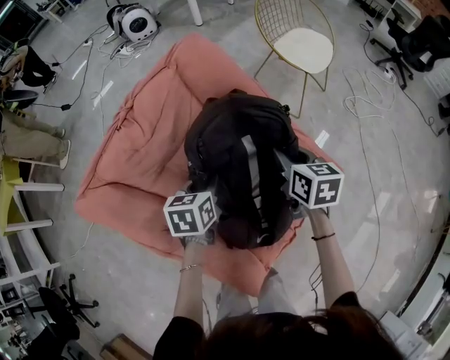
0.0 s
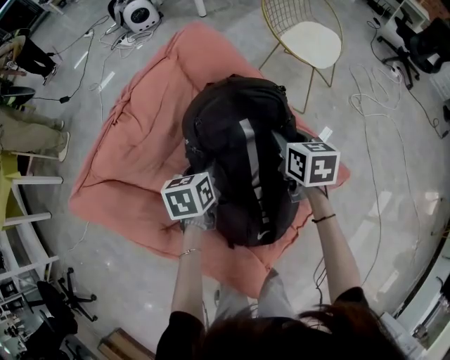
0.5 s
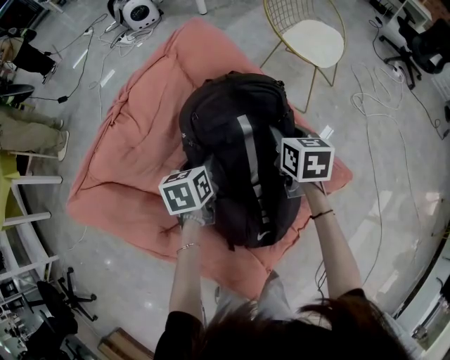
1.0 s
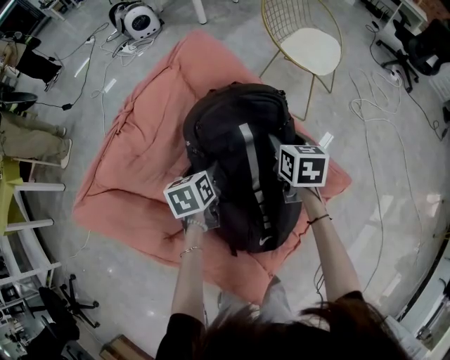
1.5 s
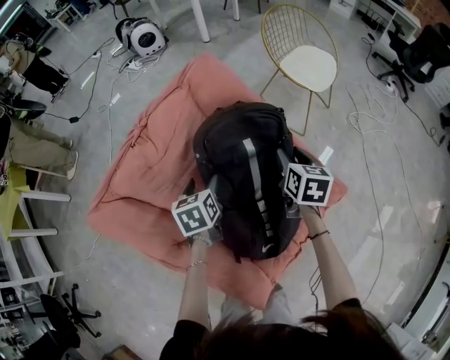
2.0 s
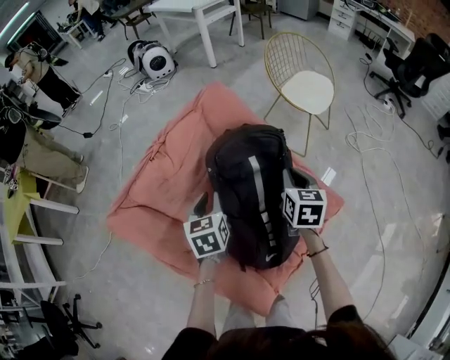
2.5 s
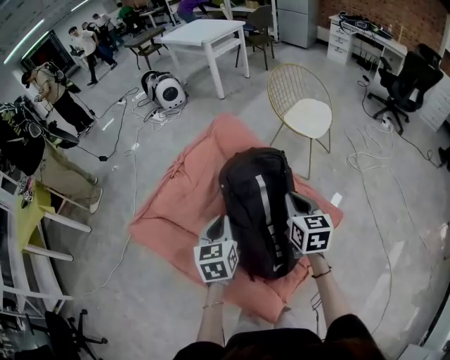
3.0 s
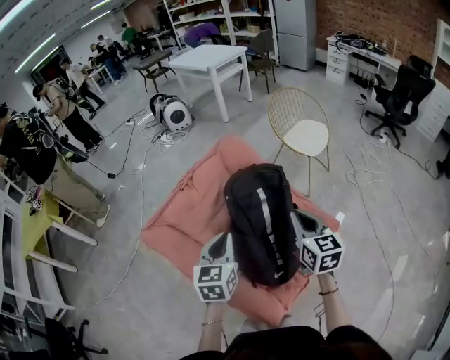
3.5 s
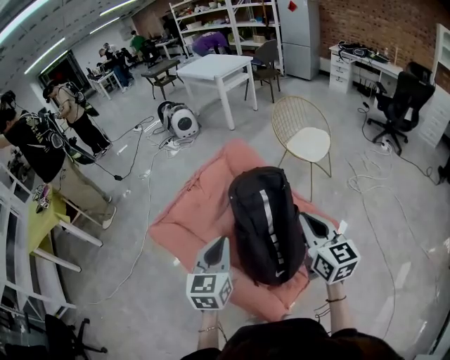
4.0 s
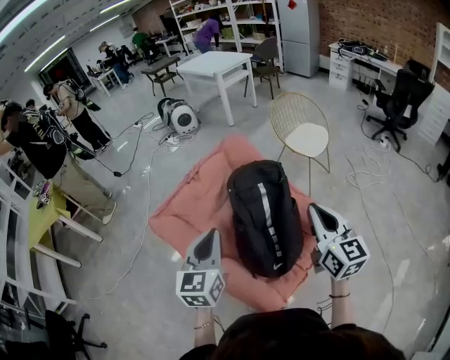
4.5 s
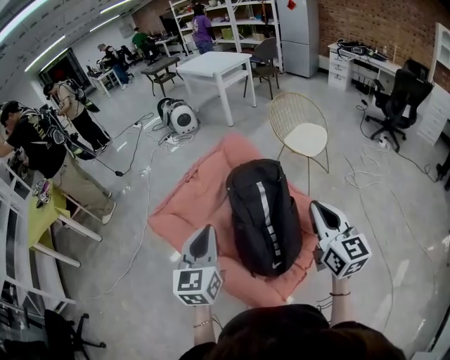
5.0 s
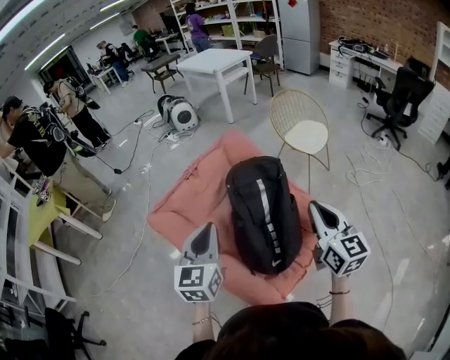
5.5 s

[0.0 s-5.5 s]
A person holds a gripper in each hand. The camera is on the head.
0.0 to 2.0 s: The right gripper travels forward by roughly 5 cm, and opens. Meanwhile the left gripper moves forward and to the left, about 5 cm, and opens its fingers.
2.0 to 3.5 s: The two grippers go about 30 cm upward and backward. The right gripper turns by about 20 degrees, and closes up, while the left gripper swivels roughly 30 degrees, and closes its fingers.
3.5 to 5.5 s: The right gripper is displaced backward and upward by about 15 cm. Meanwhile the left gripper is displaced upward and backward by some 10 cm.

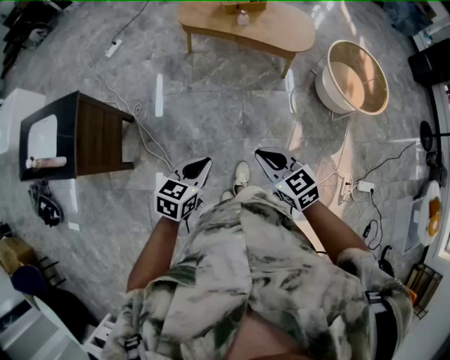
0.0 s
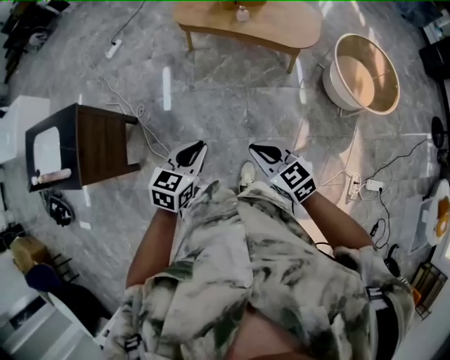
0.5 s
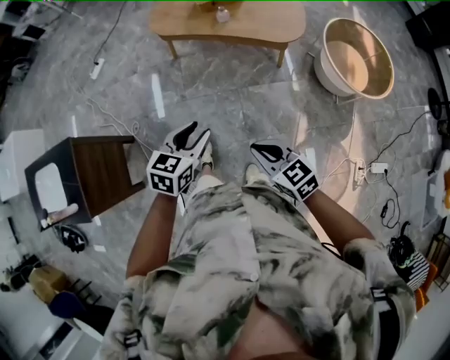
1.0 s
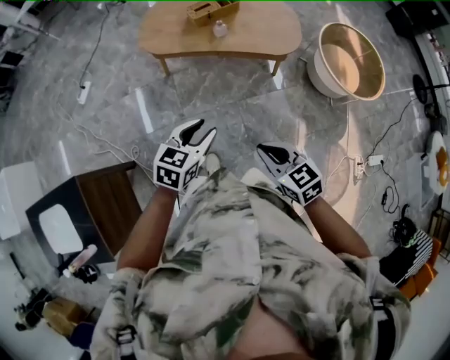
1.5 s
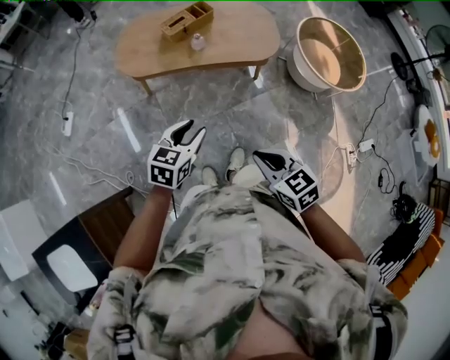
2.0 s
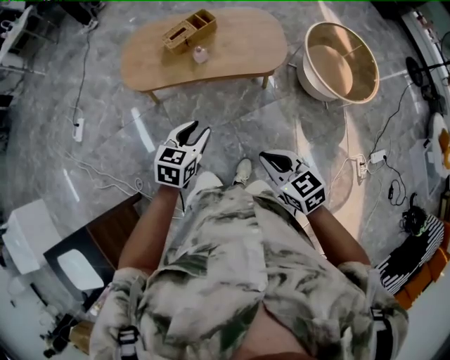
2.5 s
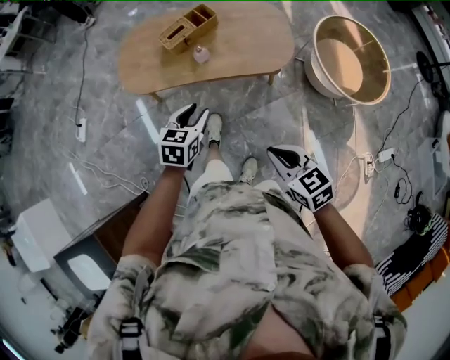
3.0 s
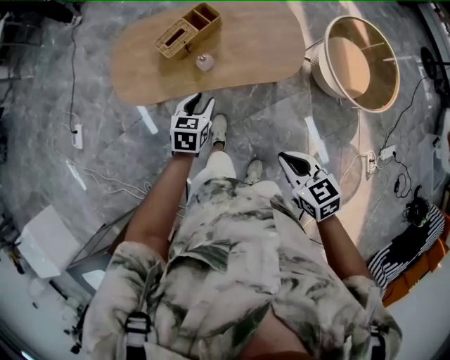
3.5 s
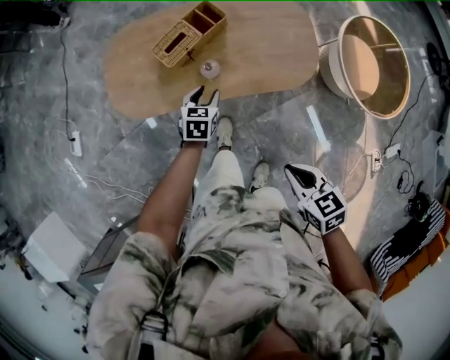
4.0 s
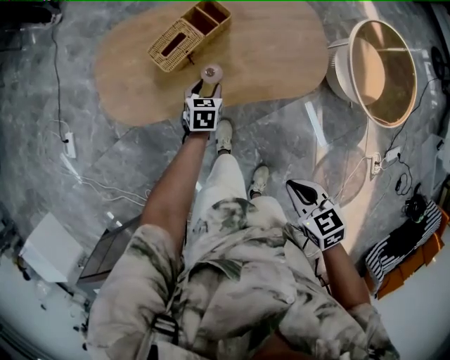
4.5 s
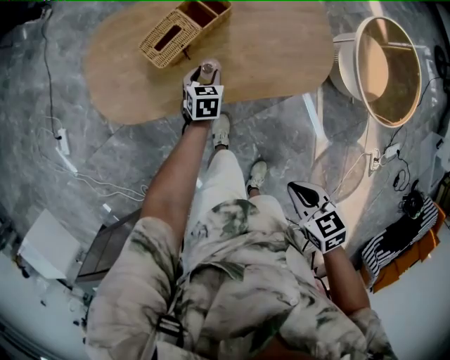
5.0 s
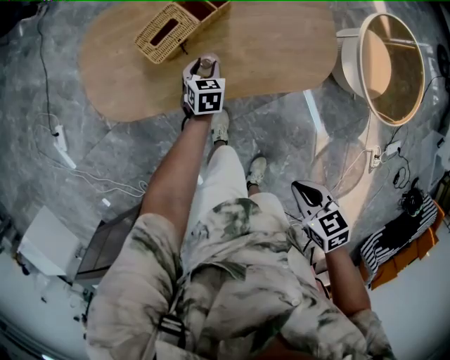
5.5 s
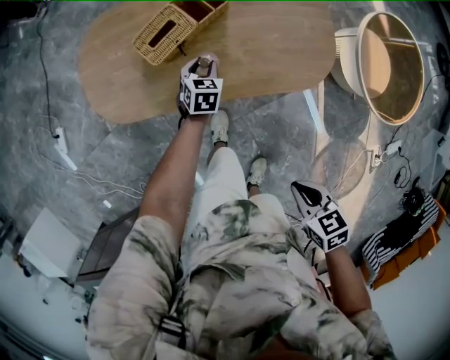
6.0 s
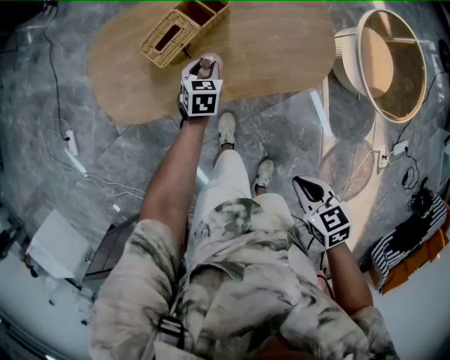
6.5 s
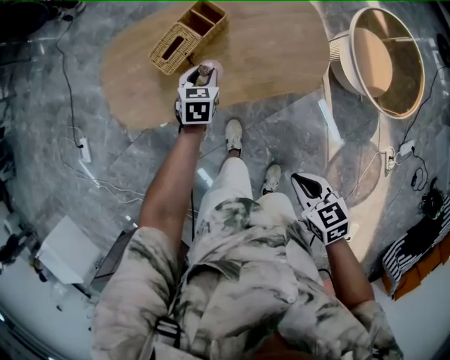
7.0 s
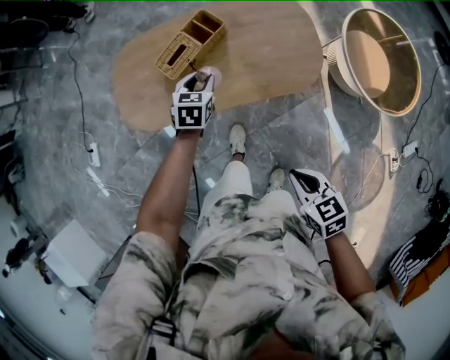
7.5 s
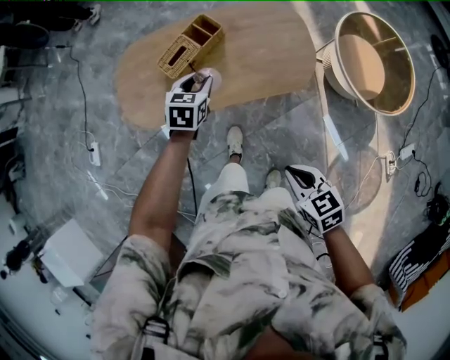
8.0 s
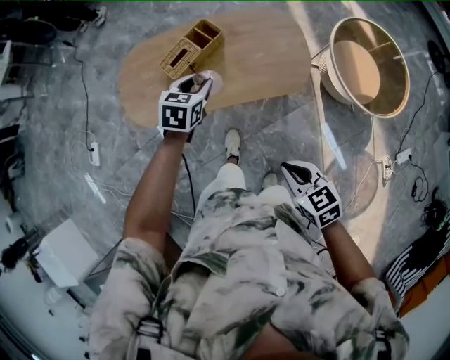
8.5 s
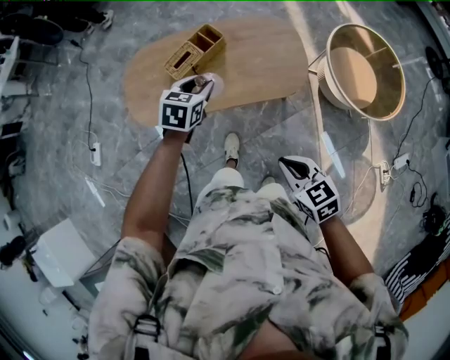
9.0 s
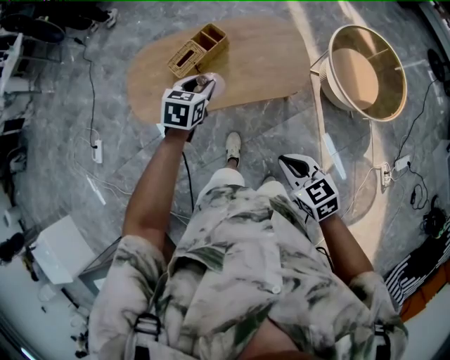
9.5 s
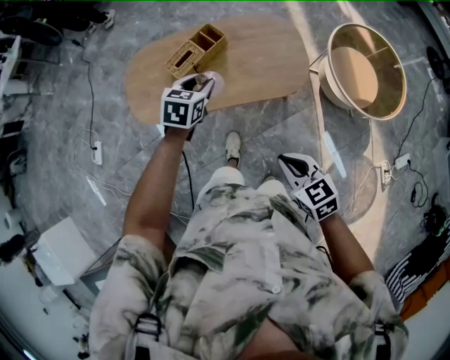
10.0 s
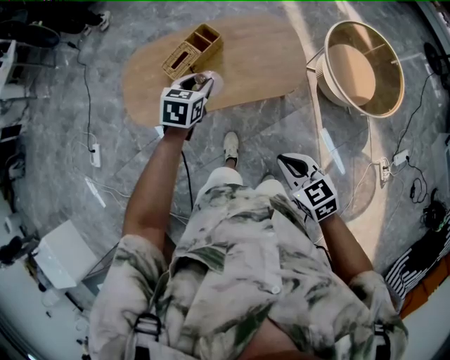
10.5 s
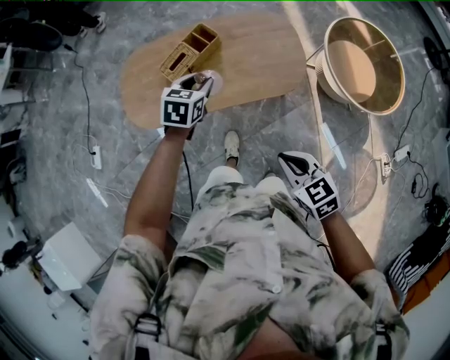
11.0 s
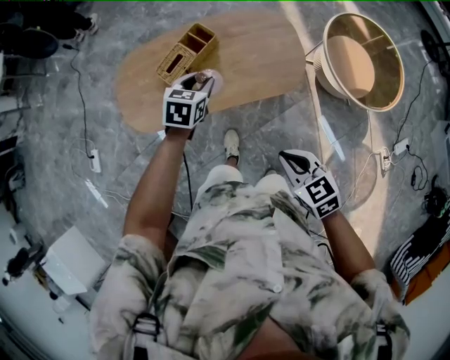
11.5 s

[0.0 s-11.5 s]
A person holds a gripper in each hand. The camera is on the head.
0.0 to 2.0 s: The right gripper shifts by approximately 35 cm, and rotates some 30 degrees; the left gripper moves approximately 50 cm, swivels approximately 20 degrees, and opens up.
2.0 to 4.0 s: The left gripper moves forward and downward, about 60 cm. The right gripper shifts about 35 cm forward.
4.0 to 6.0 s: The right gripper shifts approximately 10 cm downward. The left gripper travels downward and forward by roughly 20 cm.
6.0 to 7.5 s: The right gripper moves upward, about 10 cm. Meanwhile the left gripper goes about 20 cm upward.
7.5 to 9.5 s: The right gripper goes some 10 cm upward. Meanwhile the left gripper moves upward and backward, some 20 cm.
9.5 to 11.5 s: The grippers both shift forward by approximately 5 cm.

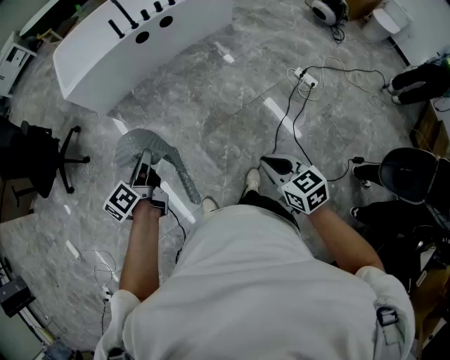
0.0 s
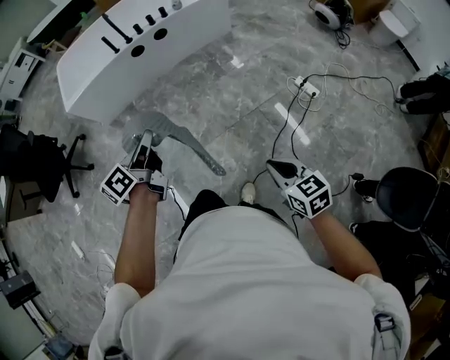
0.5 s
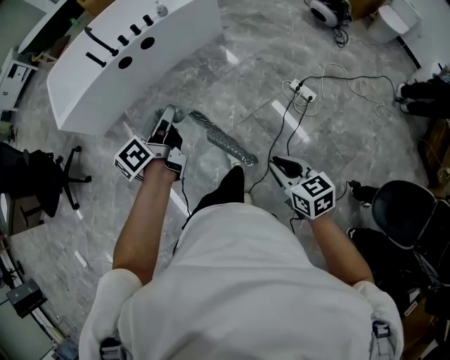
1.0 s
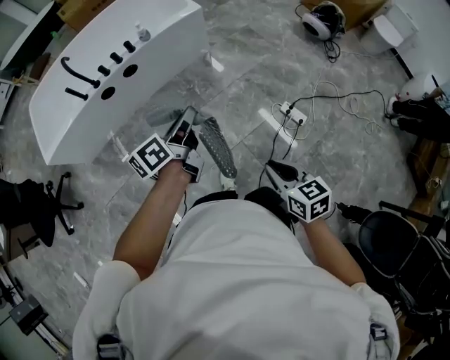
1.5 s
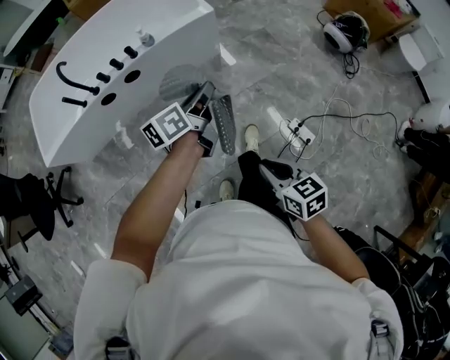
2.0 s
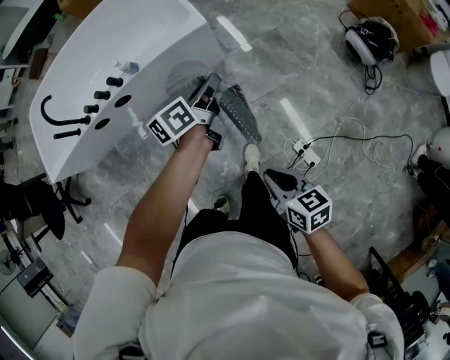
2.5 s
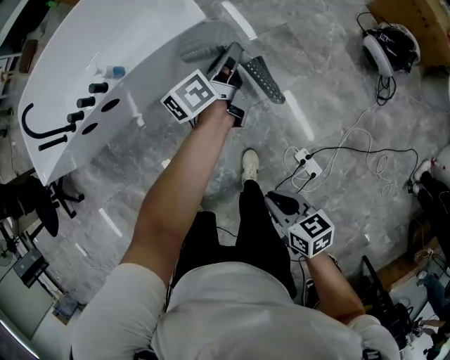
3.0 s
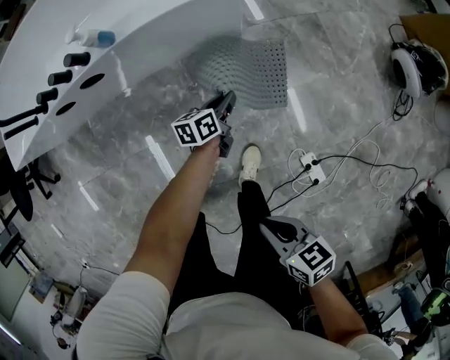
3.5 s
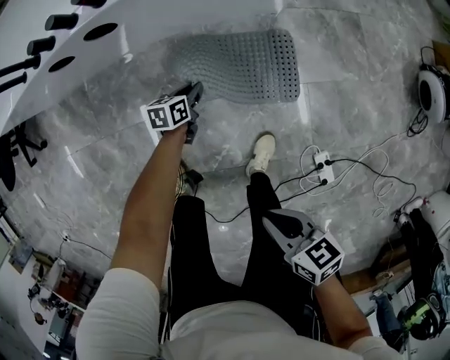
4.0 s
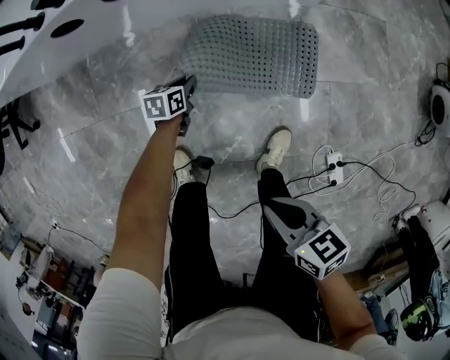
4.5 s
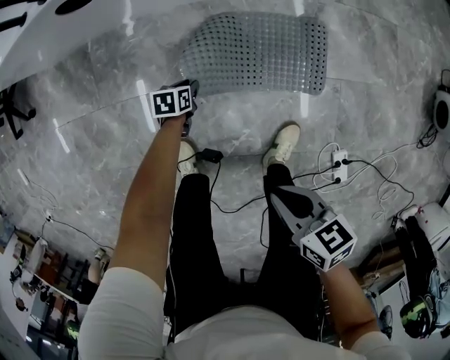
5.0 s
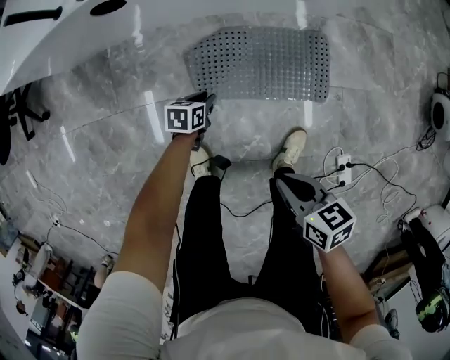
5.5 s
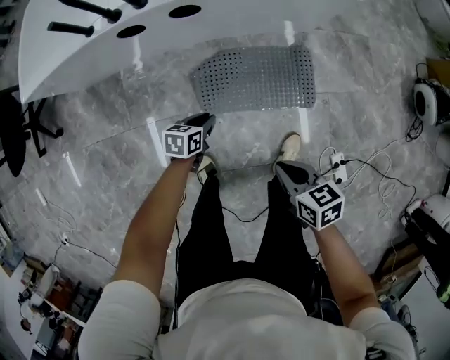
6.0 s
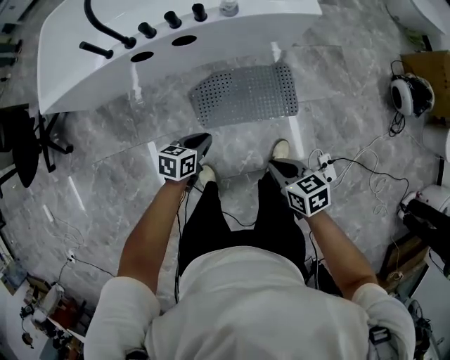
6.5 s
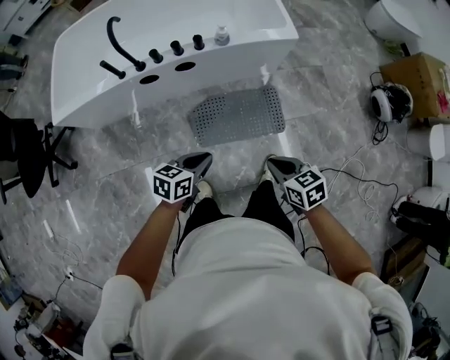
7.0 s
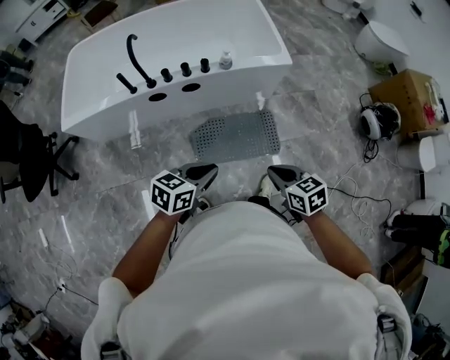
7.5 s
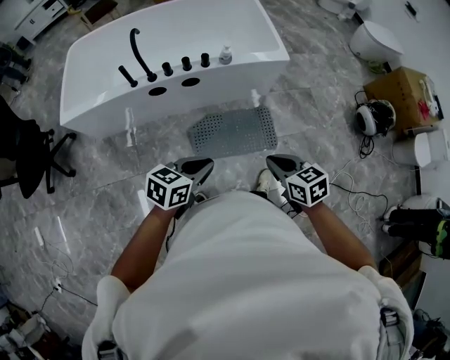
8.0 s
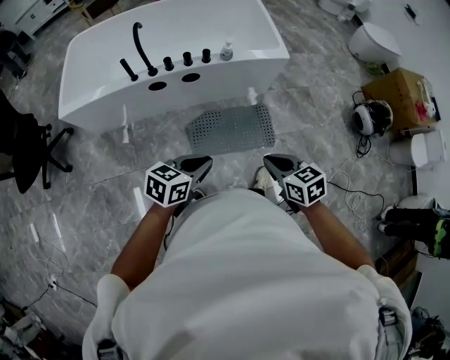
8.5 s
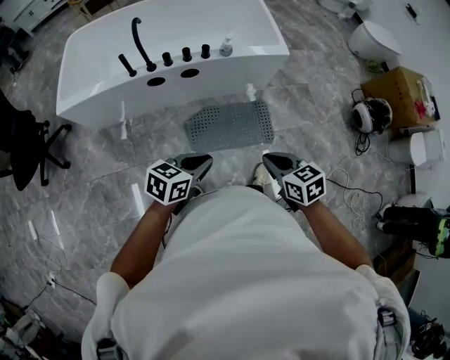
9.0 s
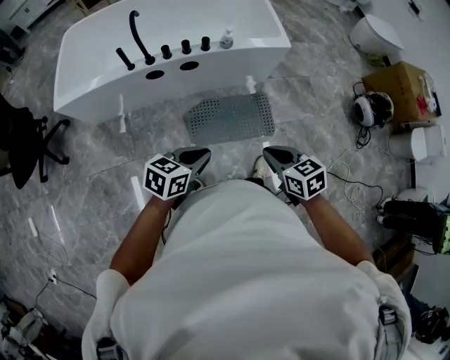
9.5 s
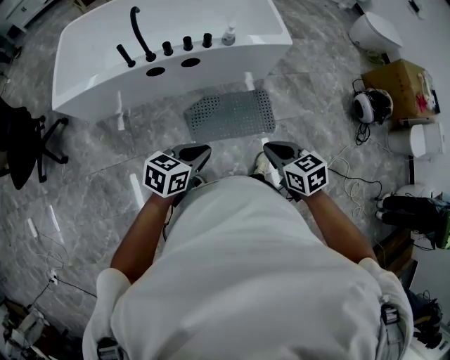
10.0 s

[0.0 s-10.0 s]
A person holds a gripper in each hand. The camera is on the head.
0.0 to 2.0 s: Both grippers are carried forward and to the right, approximately 70 cm.
2.0 to 4.0 s: The left gripper is displaced downward by approximately 60 cm, and angles its fingers downward, by approximately 30 degrees. The right gripper shifts approximately 25 cm downward, and turns by some 40 degrees.
4.0 to 6.0 s: The right gripper shifts some 15 cm to the left and forward, while the left gripper is displaced to the left, upward and backward by about 25 cm.
6.0 to 8.0 s: The left gripper travels upward by approximately 40 cm, and turns by about 30 degrees. Meanwhile the right gripper is displaced upward by about 25 cm.
8.0 to 10.0 s: The grippers move only a little.
